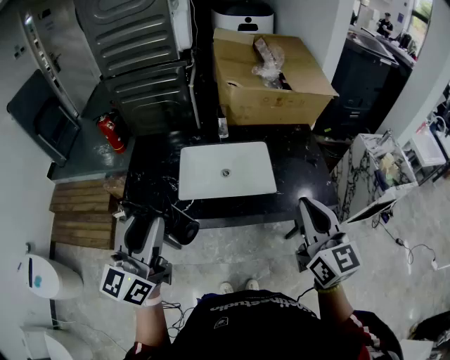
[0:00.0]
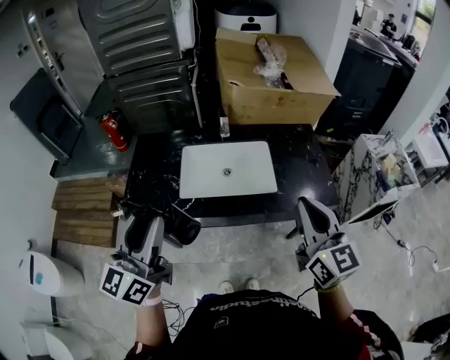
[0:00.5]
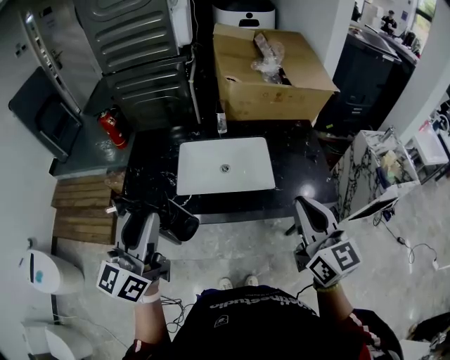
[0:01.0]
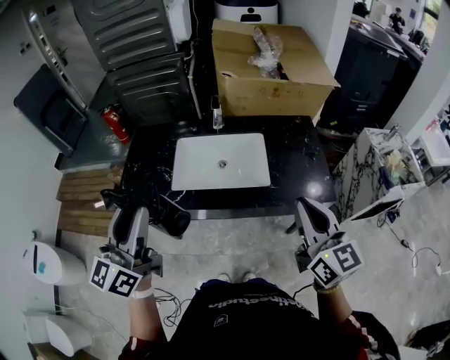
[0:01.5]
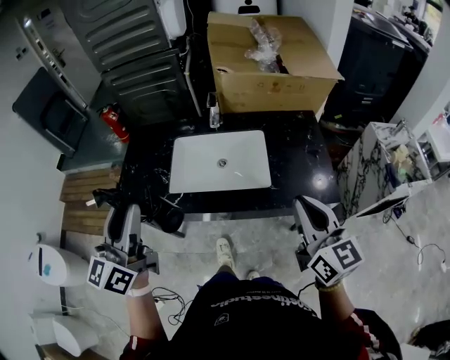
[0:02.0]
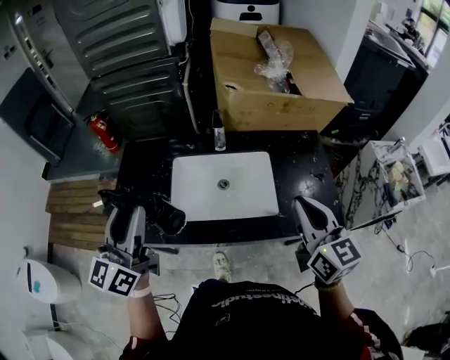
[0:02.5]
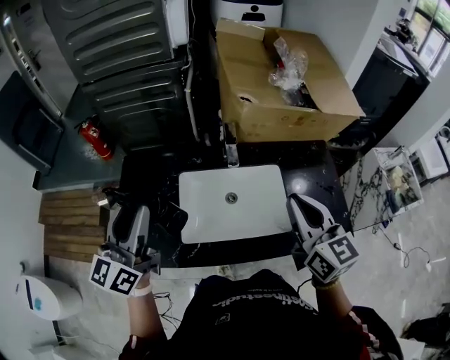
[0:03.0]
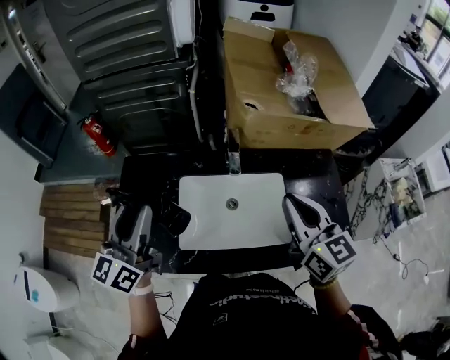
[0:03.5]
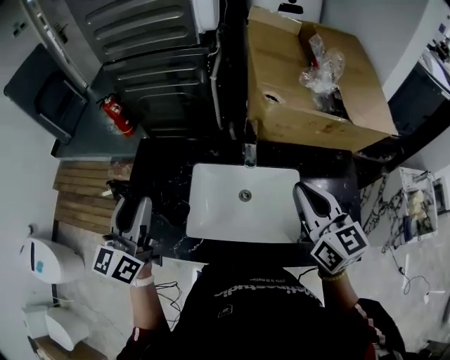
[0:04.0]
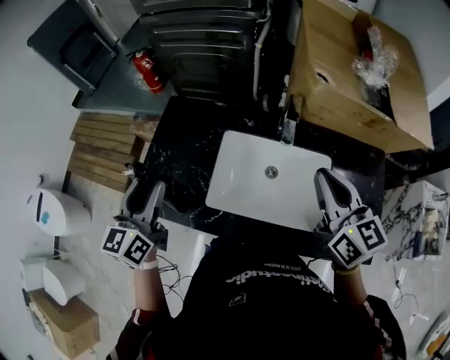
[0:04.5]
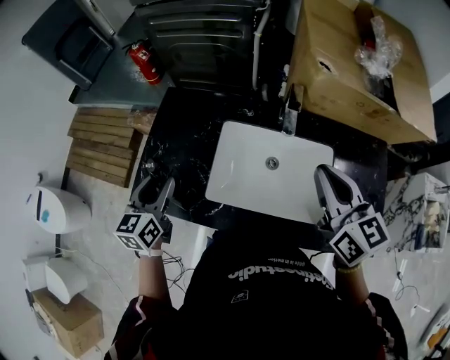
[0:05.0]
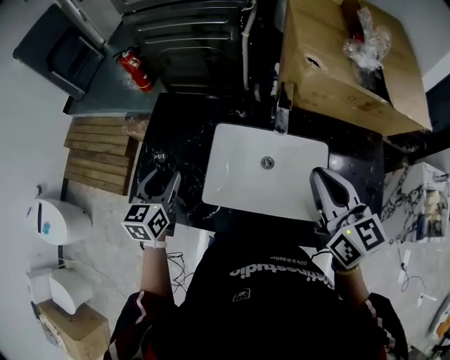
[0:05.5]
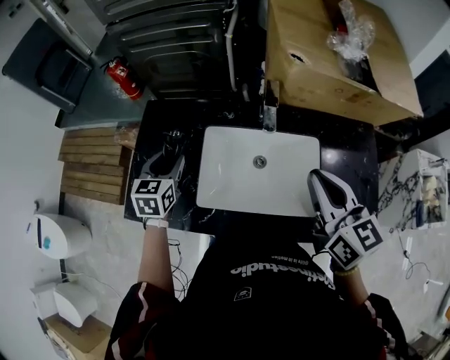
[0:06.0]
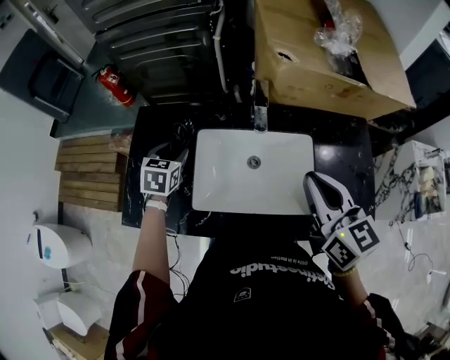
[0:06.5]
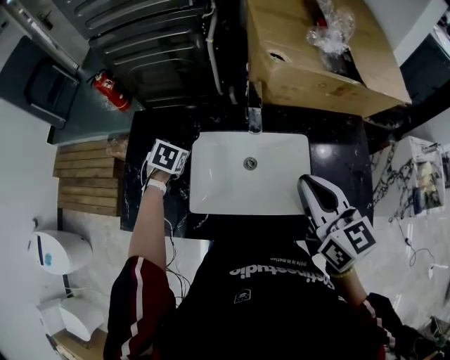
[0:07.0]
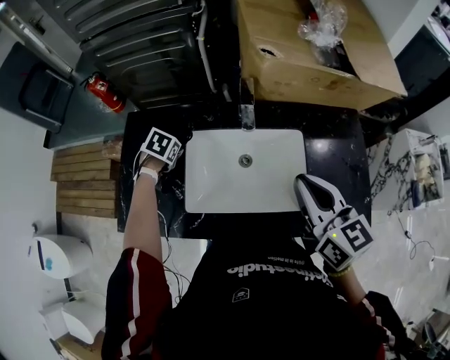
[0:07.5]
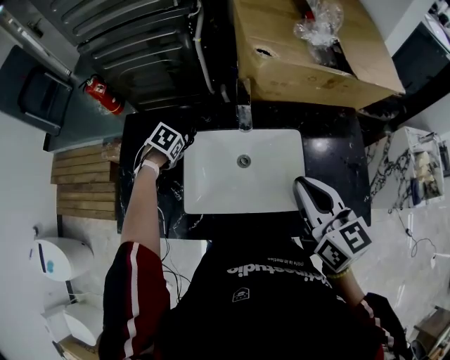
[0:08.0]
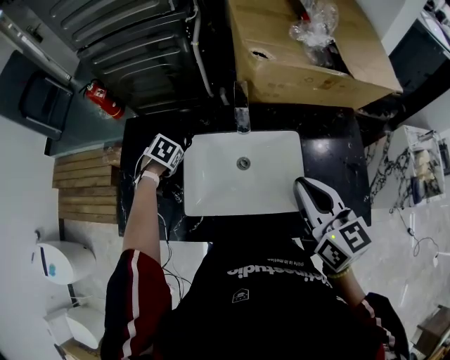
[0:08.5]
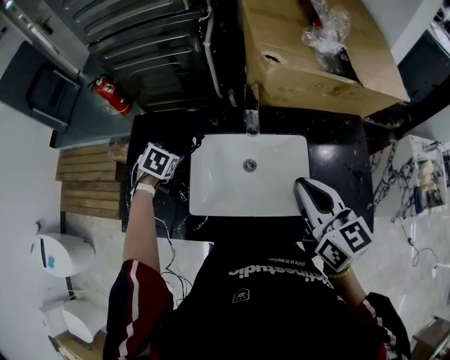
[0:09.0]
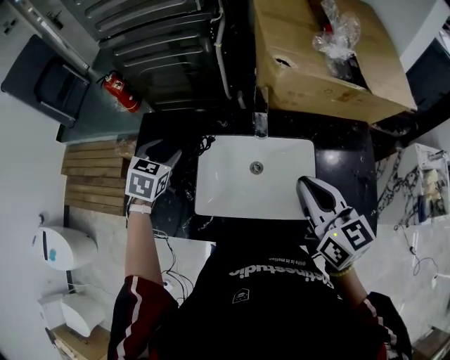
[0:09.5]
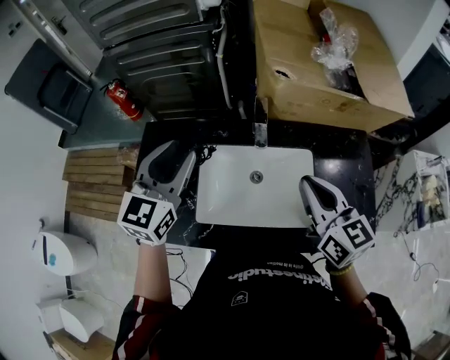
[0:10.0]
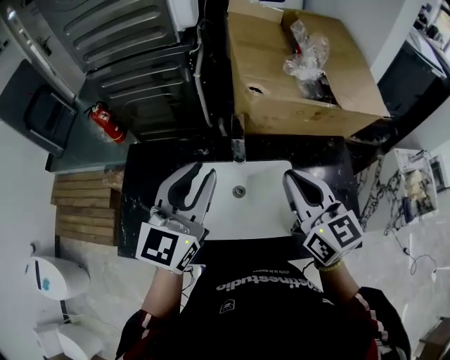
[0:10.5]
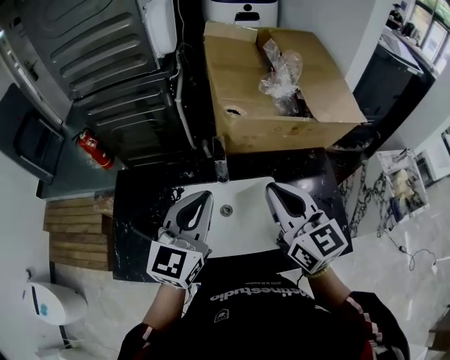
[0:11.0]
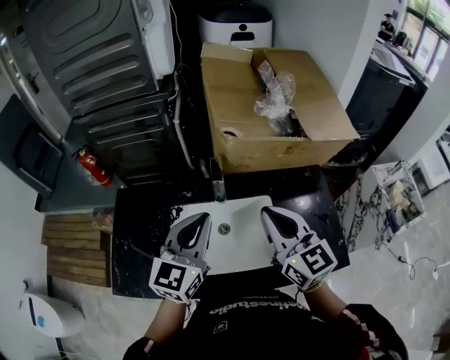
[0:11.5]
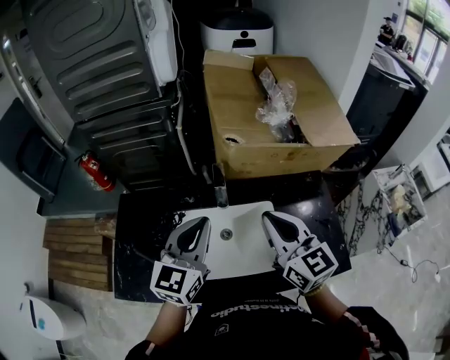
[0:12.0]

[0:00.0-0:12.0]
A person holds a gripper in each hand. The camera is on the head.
0:00.0 to 0:02.0: The right gripper shifts approximately 10 cm to the right and downward.
0:02.0 to 0:04.0: The two grippers go roughly 25 cm forward.
0:04.0 to 0:06.0: The left gripper goes some 20 cm downward, and tips its fingers downward by some 40 degrees. The right gripper shifts by some 5 cm.
0:06.0 to 0:08.0: The left gripper moves downward, about 15 cm, and tilts its fingers roughly 50 degrees downward.
0:08.0 to 0:10.0: The left gripper shifts approximately 30 cm upward, and tips its fingers upward by about 70 degrees.
0:10.0 to 0:12.0: The left gripper heads to the right, covering about 15 cm, and closes its fingers, while the right gripper heads upward, covering about 5 cm.

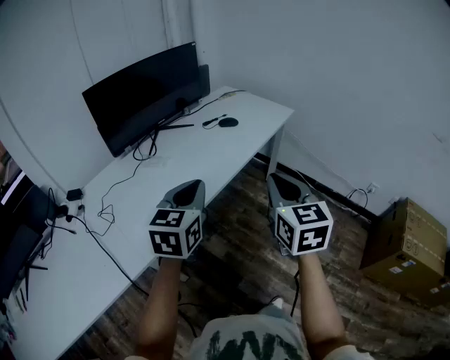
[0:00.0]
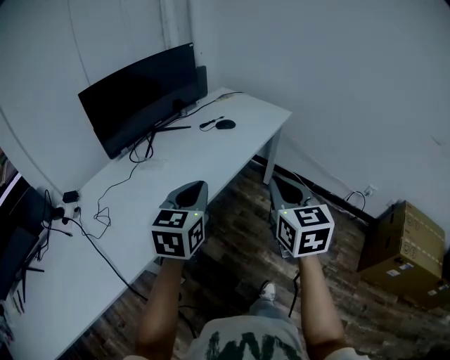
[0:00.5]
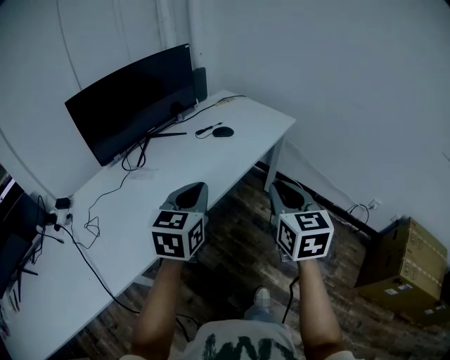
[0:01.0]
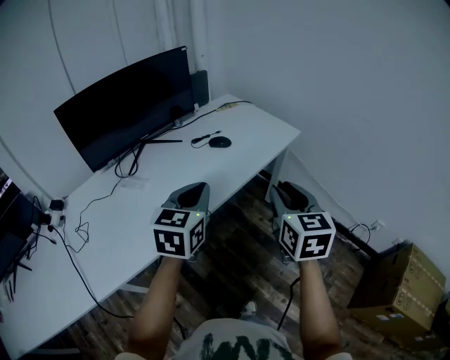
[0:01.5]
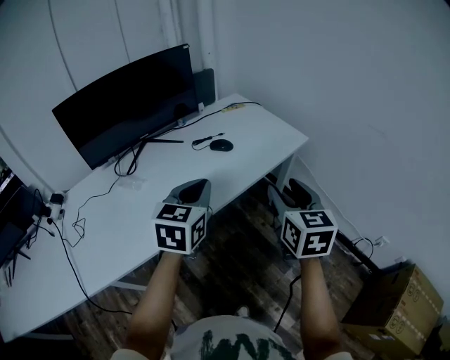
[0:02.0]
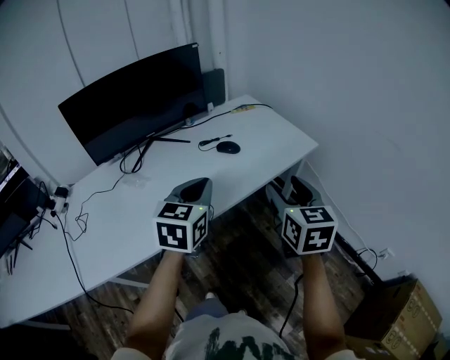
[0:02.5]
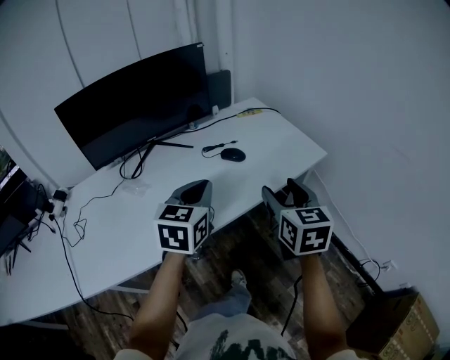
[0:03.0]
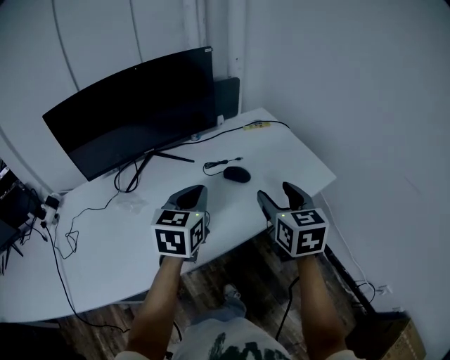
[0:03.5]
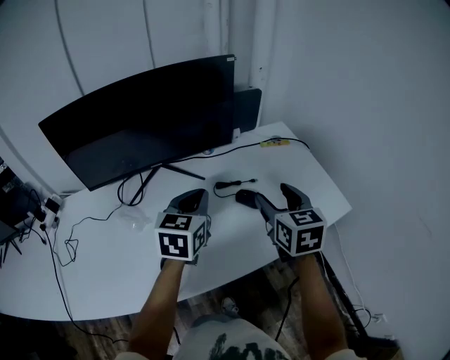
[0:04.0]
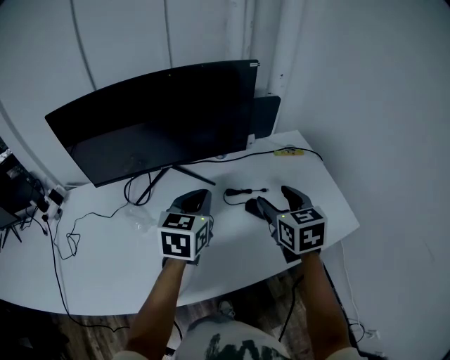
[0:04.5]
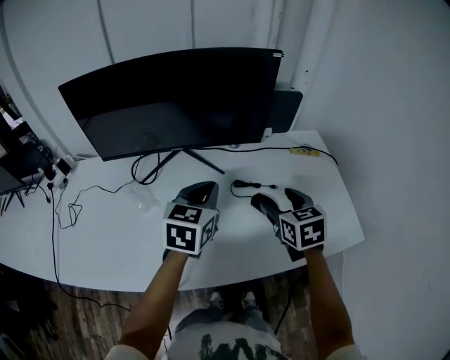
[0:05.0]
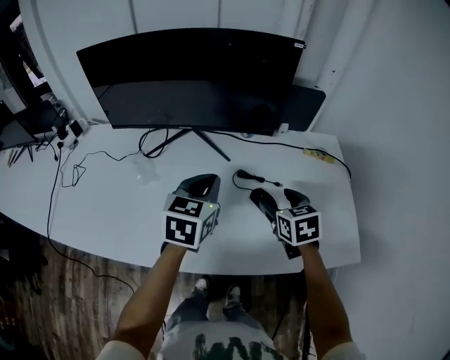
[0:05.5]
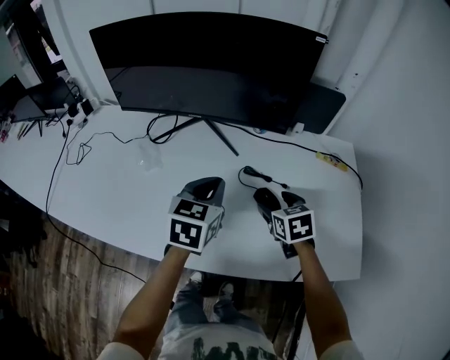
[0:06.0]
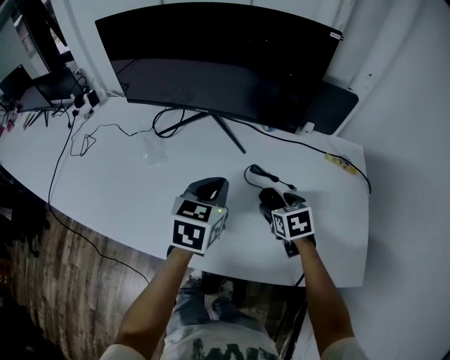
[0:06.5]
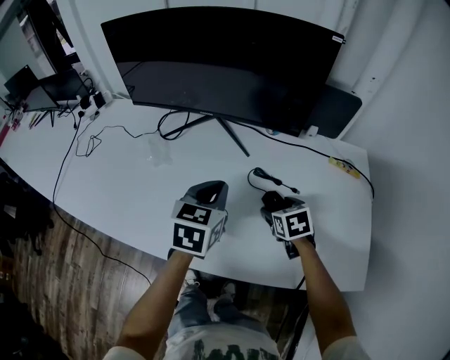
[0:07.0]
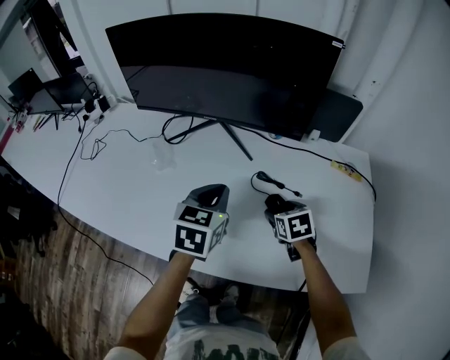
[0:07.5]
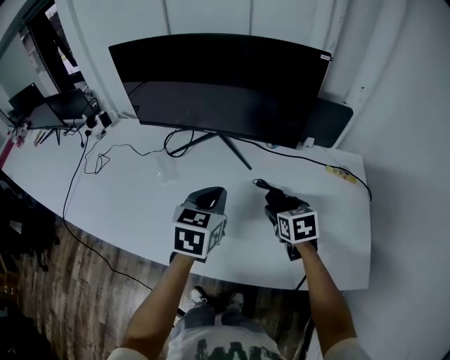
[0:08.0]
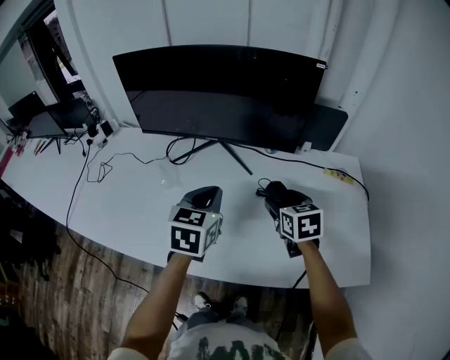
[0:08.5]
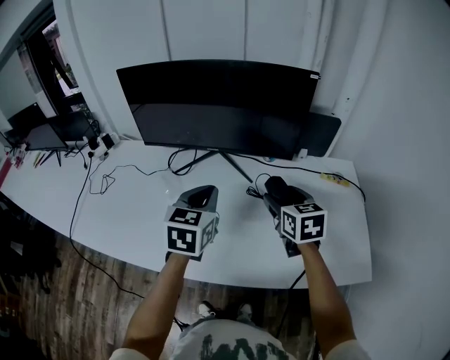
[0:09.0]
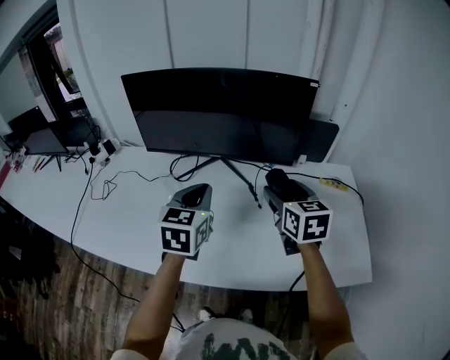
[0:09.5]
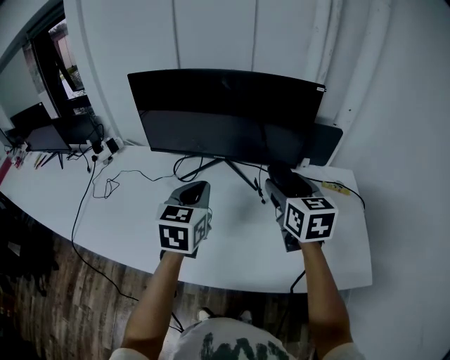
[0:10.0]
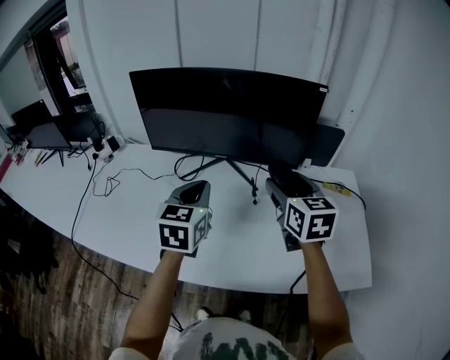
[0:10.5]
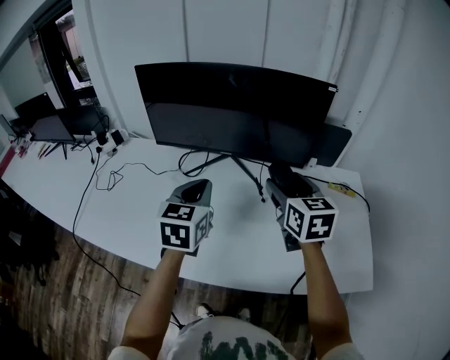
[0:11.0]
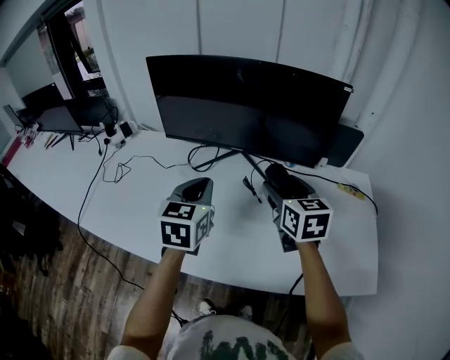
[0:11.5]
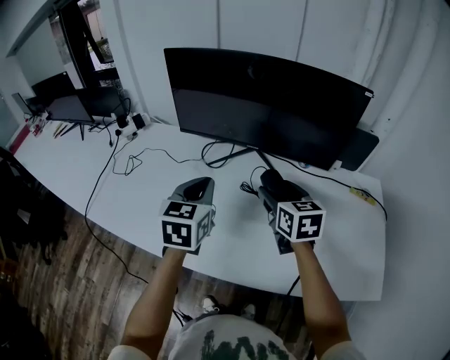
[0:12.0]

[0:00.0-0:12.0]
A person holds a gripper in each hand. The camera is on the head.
0:00.0 to 0:02.0: Both grippers travel together forward and to the right, about 30 cm. The right gripper opens.
0:02.0 to 0:04.0: Both grippers move forward, some 30 cm. The right gripper swivels some 20 degrees.
0:04.0 to 0:06.0: The right gripper is displaced downward by about 20 cm, and turns by roughly 40 degrees. The left gripper heads downward, covering approximately 10 cm, and changes its angle by approximately 30 degrees.
0:06.0 to 0:08.0: The grippers move only a little.
0:08.0 to 0:10.0: The right gripper travels upward by approximately 20 cm, and turns by approximately 30 degrees. Meanwhile the left gripper is displaced upward and to the left by some 15 cm.
0:10.0 to 0:12.0: The left gripper goes roughly 10 cm to the left, while the right gripper heads to the left and downward, covering about 15 cm.

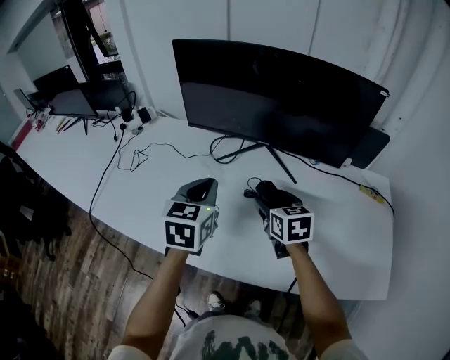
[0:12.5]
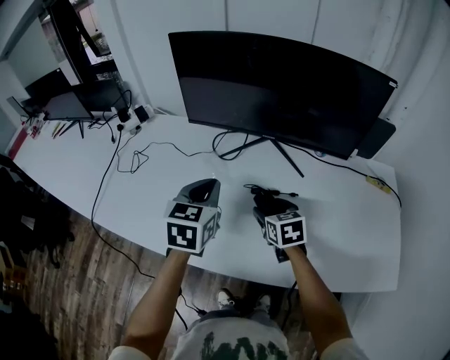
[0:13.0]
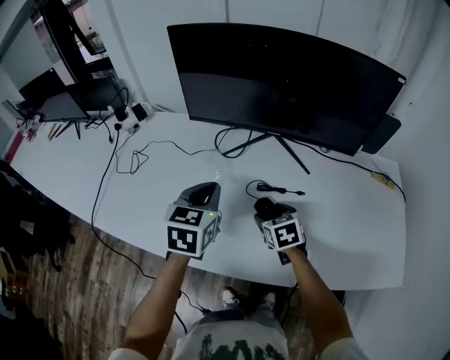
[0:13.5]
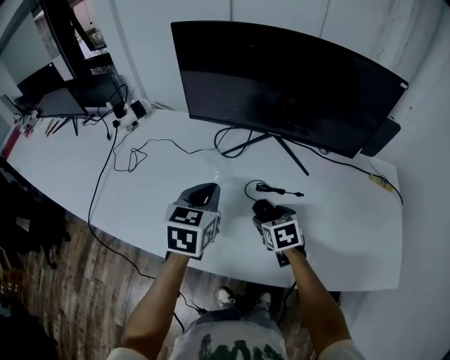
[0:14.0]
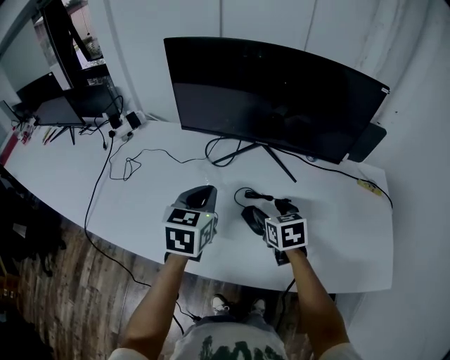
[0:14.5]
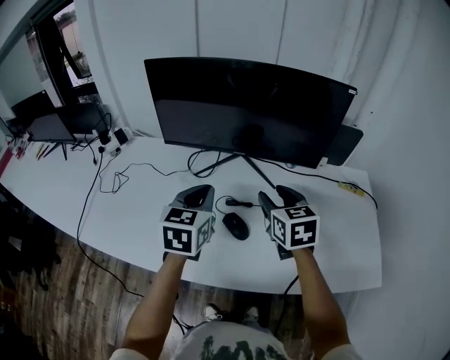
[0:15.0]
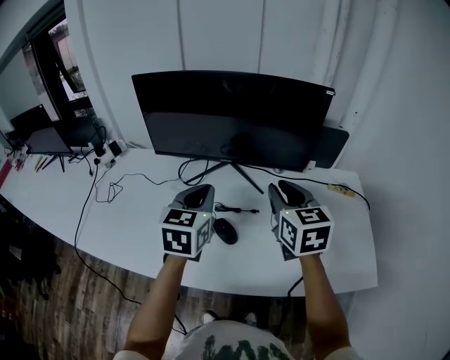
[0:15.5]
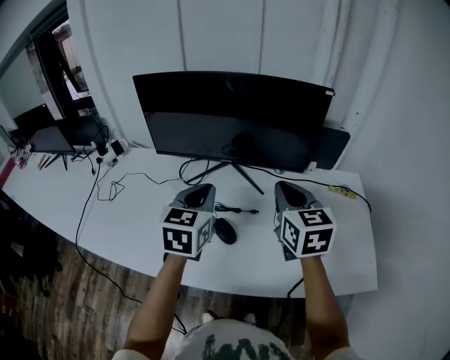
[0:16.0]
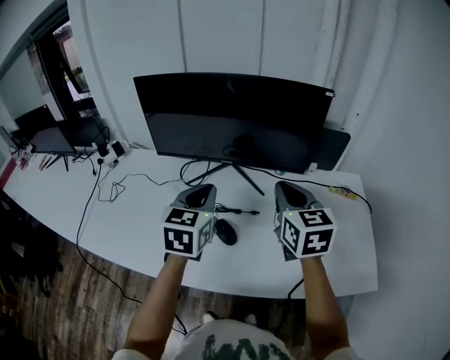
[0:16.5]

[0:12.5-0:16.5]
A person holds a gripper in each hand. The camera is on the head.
0:14.5 to 0:16.5: The right gripper is displaced upward and to the right by approximately 25 cm, turns by about 30 degrees, and closes its fingers. The left gripper heads to the right and upward, covering roughly 15 cm.
